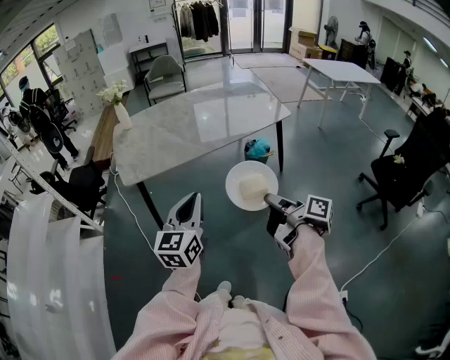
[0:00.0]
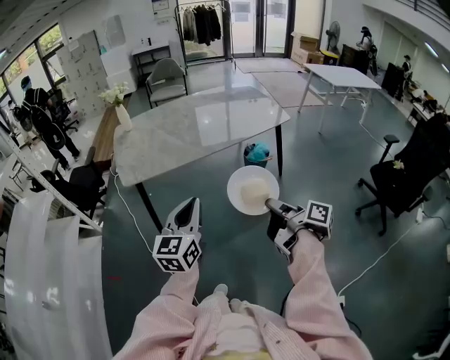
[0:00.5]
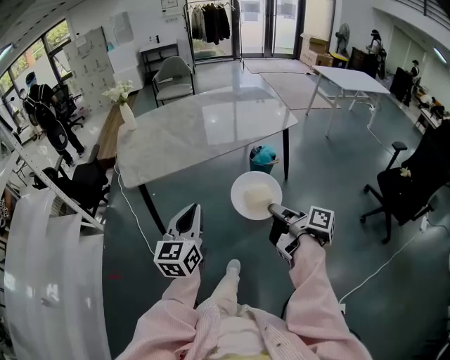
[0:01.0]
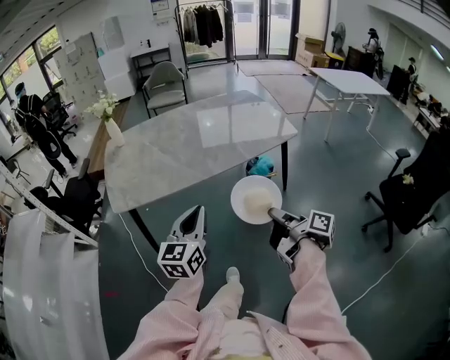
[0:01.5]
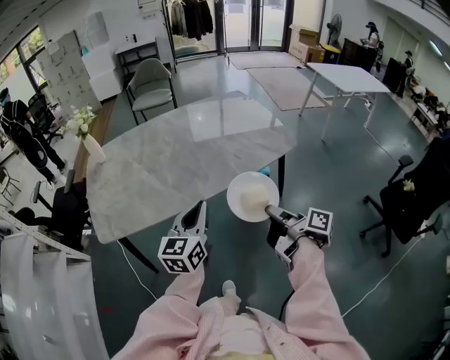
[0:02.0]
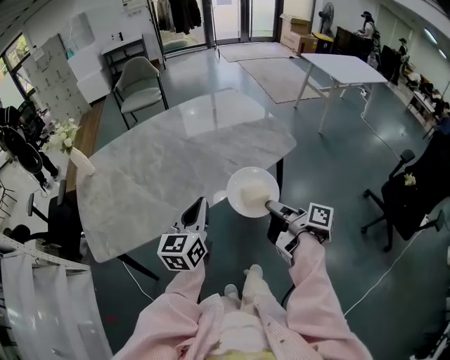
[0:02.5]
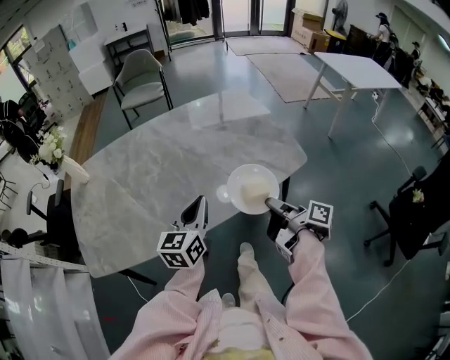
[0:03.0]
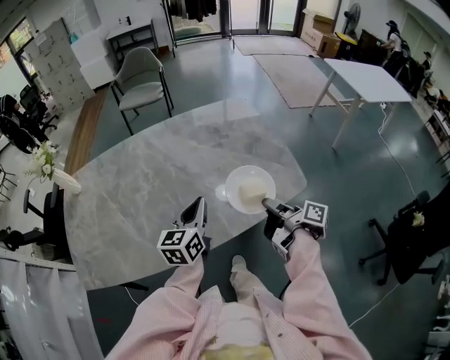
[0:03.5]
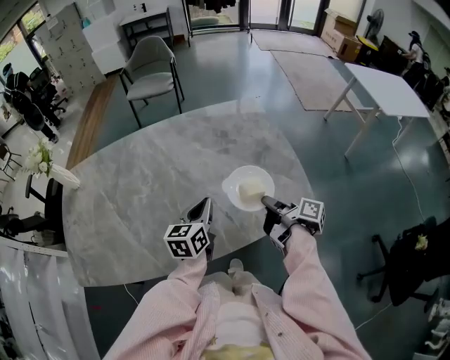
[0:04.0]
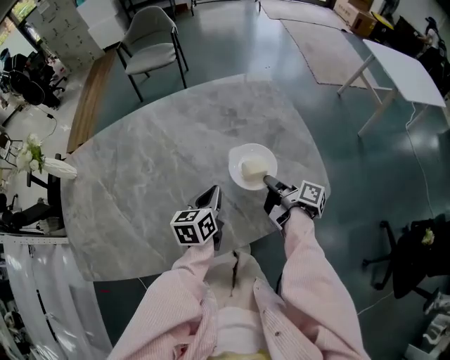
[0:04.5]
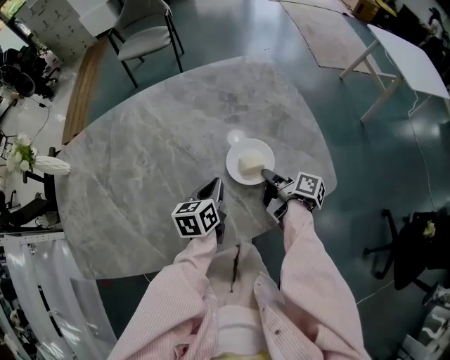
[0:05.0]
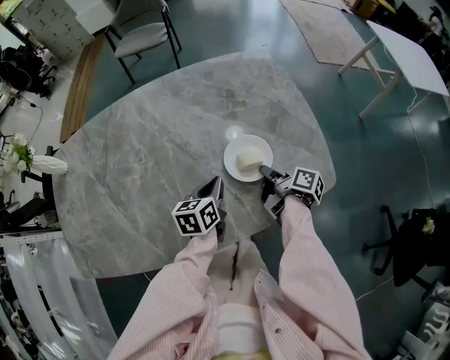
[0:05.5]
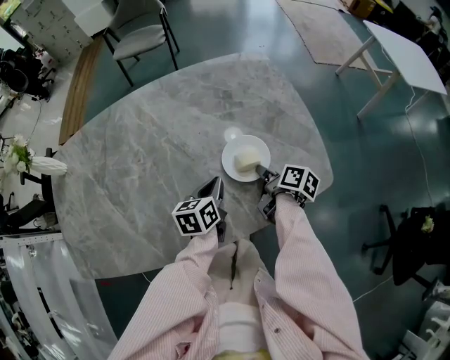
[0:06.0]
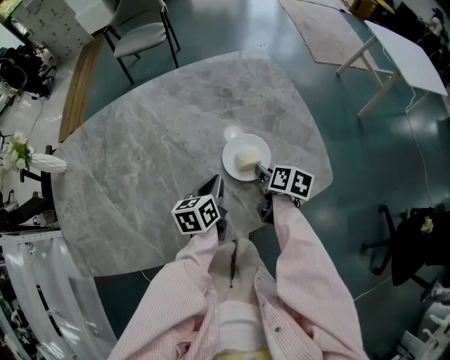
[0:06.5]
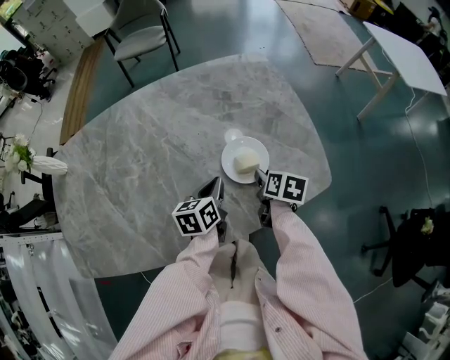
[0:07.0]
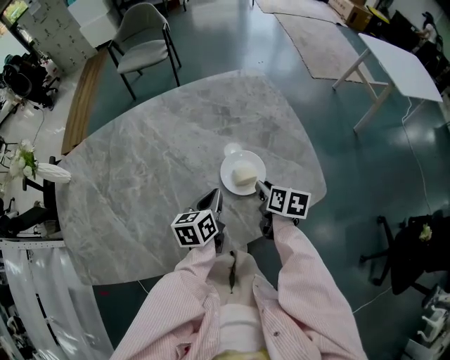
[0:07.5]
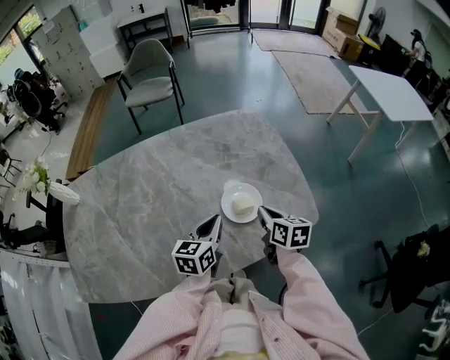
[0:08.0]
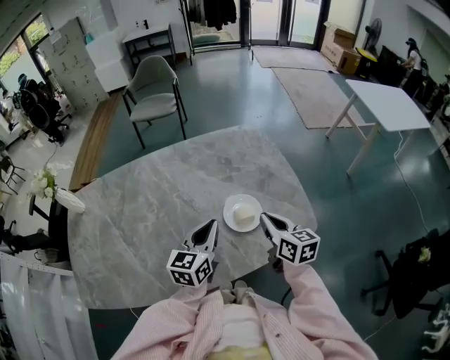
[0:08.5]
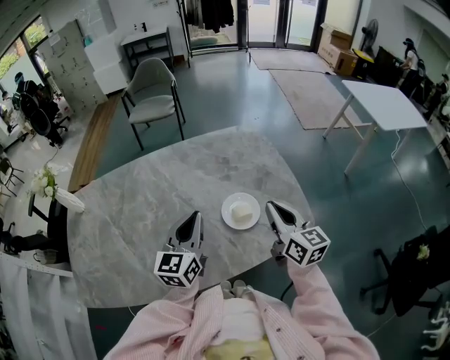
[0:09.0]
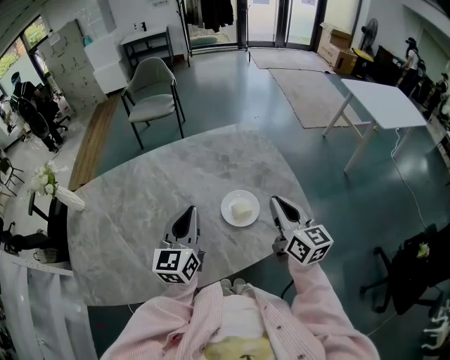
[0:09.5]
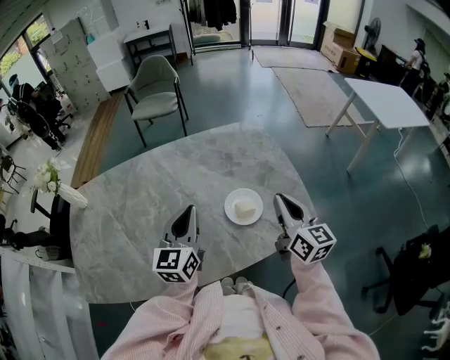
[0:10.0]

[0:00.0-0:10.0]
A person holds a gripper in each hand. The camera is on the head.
0:00.0 to 0:02.0: Both grippers travel together forward, approximately 30 cm.
0:02.0 to 0:04.0: Both grippers are carried forward, about 40 cm.
0:04.0 to 0:06.0: The right gripper shifts roughly 15 cm downward and forward, and swivels approximately 20 degrees, while the left gripper goes about 10 cm downward.
0:06.0 to 0:08.0: The grippers both shift upward by roughly 10 cm. The right gripper swivels some 40 degrees.
0:08.0 to 0:10.0: The right gripper goes roughly 15 cm upward, and turns by about 30 degrees, while the left gripper shifts roughly 15 cm upward and to the left, and turns by about 30 degrees.

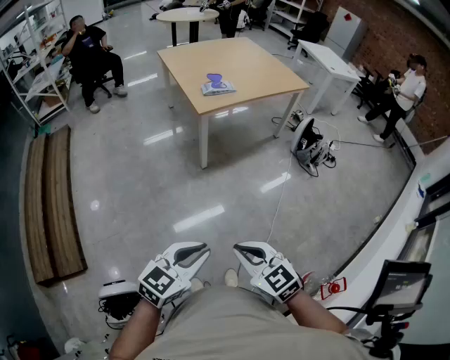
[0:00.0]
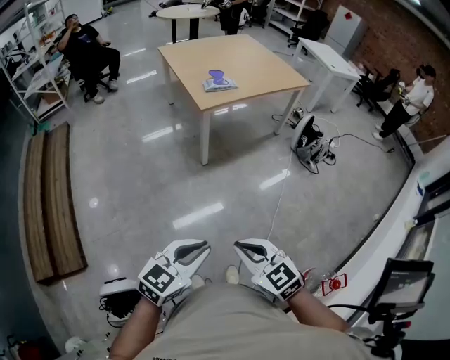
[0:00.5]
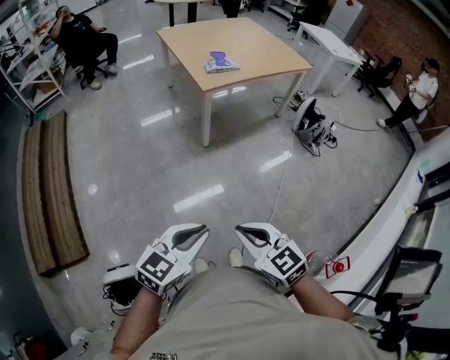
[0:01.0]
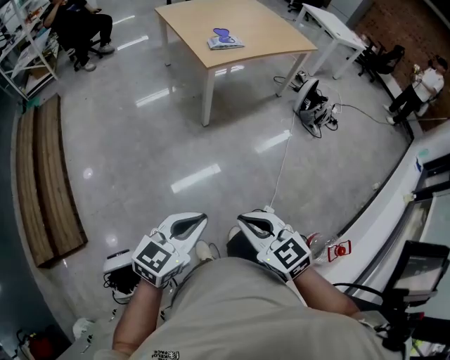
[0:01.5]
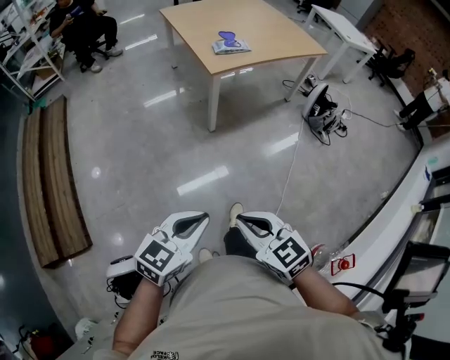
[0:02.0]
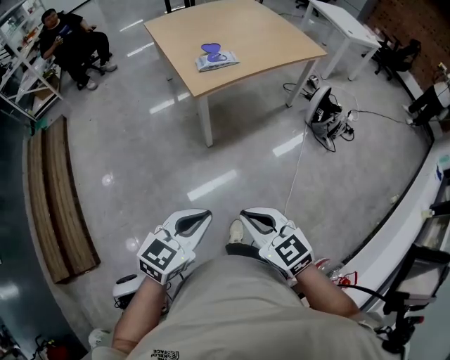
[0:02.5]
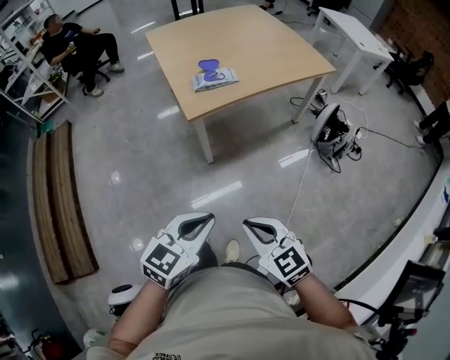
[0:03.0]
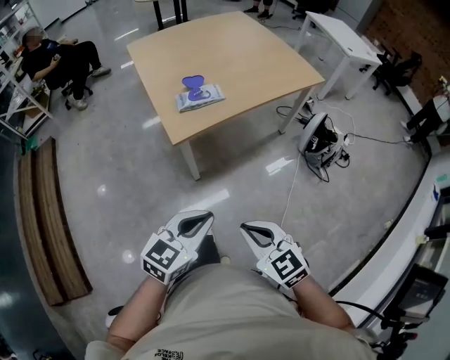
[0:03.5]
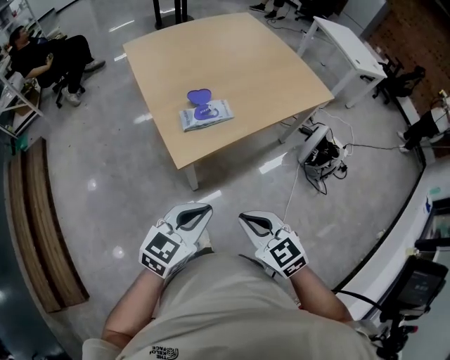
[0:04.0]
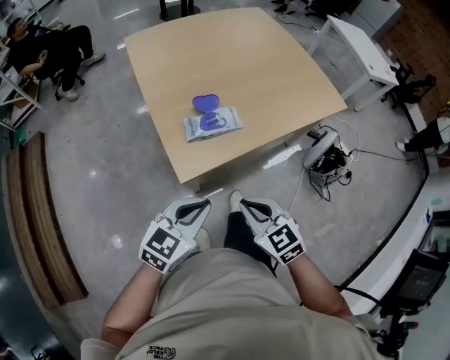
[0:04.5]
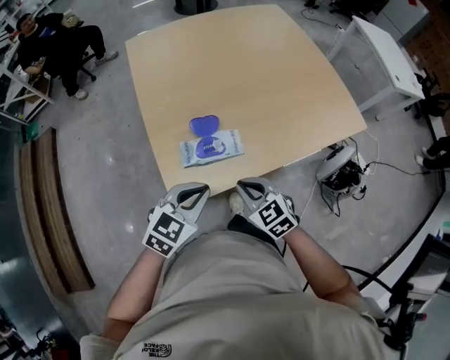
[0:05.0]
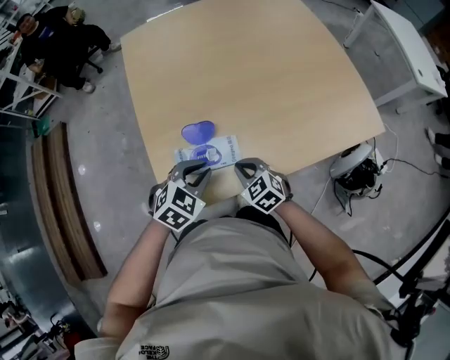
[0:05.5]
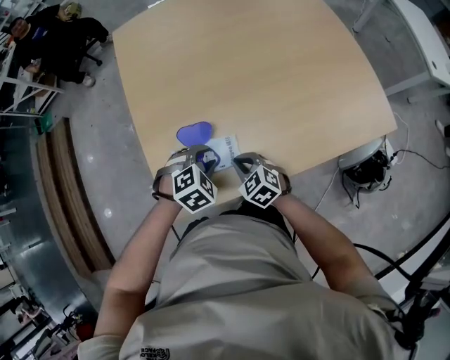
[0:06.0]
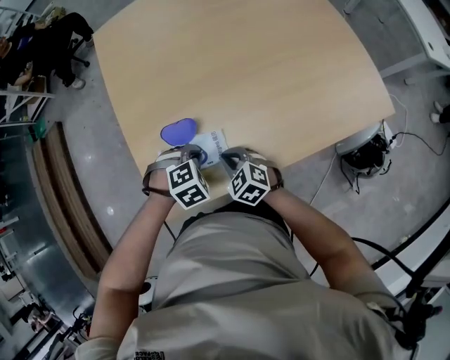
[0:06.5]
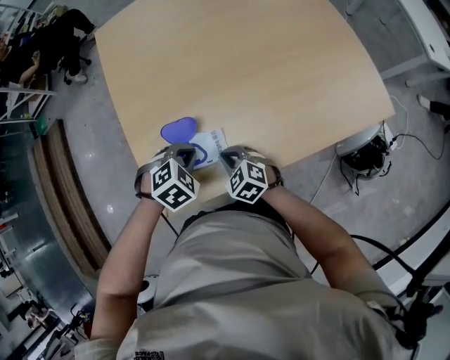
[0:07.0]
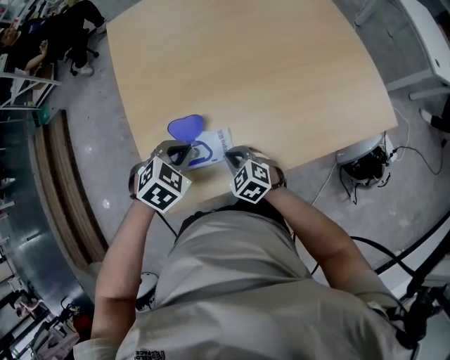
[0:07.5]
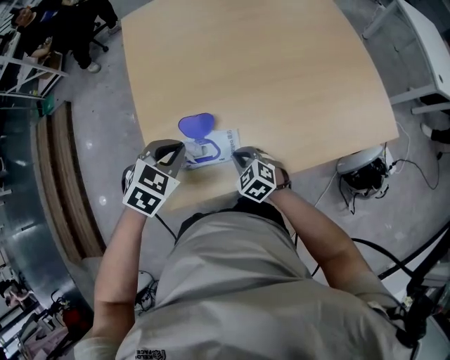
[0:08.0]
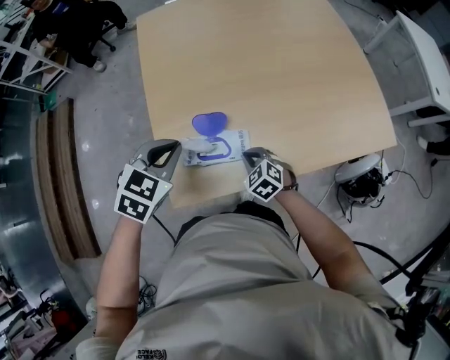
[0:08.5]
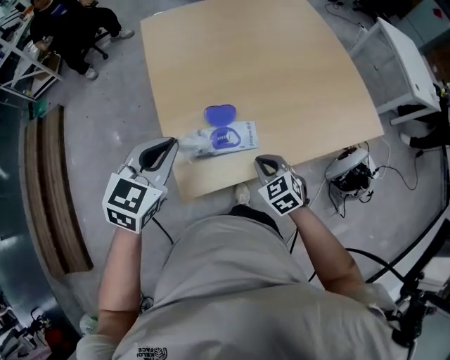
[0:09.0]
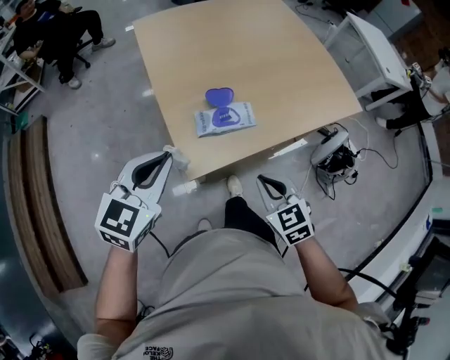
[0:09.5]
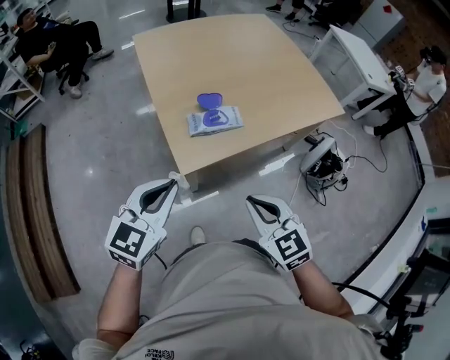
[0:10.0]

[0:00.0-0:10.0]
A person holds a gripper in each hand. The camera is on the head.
0:00.0 to 0:02.0: The two grippers go about 10 cm to the left and forward.
0:02.0 to 0:04.0: The pair of grippers is taken forward, approximately 60 cm.
0:04.0 to 0:06.0: Both grippers are carried forward, some 50 cm. Both grippers travel together downward, some 25 cm. The left gripper tips its fingers downward by roughly 50 degrees, and opens its fingers; the right gripper swivels about 20 degrees.
0:06.0 to 0:08.0: The left gripper heads upward, covering roughly 10 cm, turns by some 20 degrees, and closes up.
0:08.0 to 0:10.0: The right gripper moves backward and upward, some 50 cm, and changes its angle by some 30 degrees; the left gripper goes roughly 40 cm backward, to the left and upward, and points its fingers some 40 degrees further upward.

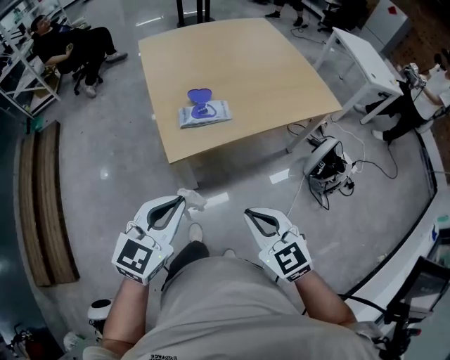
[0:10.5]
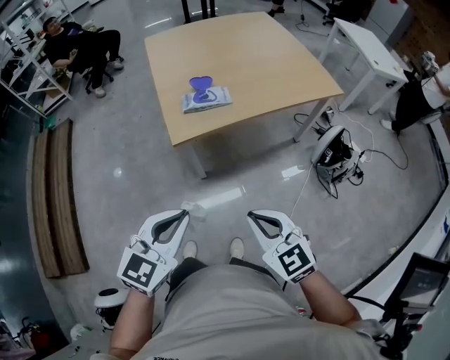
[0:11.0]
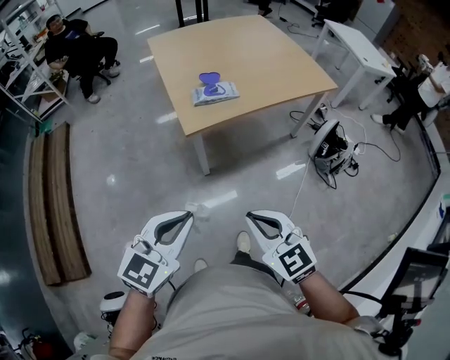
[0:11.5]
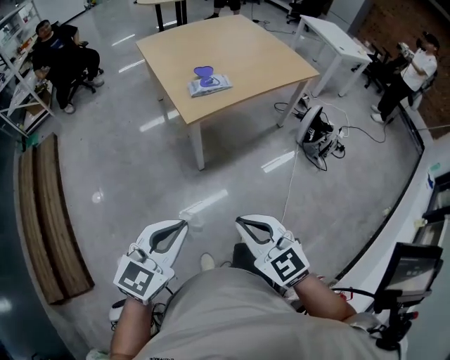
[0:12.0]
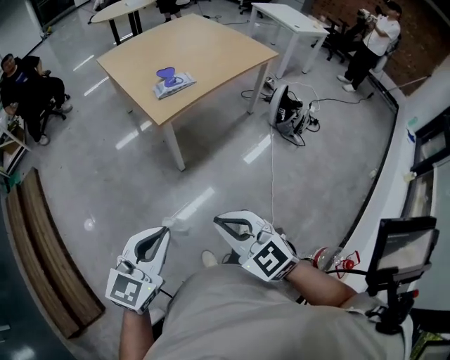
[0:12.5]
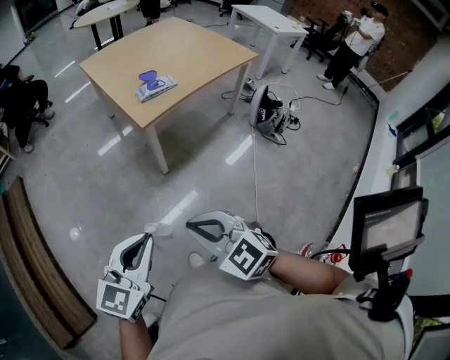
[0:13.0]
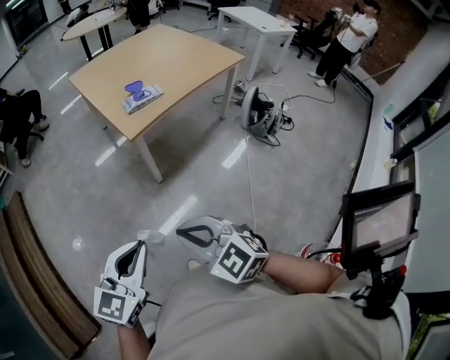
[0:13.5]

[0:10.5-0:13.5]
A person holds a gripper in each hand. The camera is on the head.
0:10.5 to 0:12.0: The grippers both shift backward and to the left by roughly 35 cm.
0:12.0 to 0:13.5: The right gripper moves backward and to the left, some 10 cm, while the left gripper shifts some 5 cm backward.

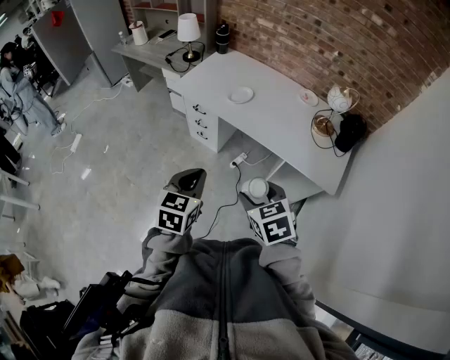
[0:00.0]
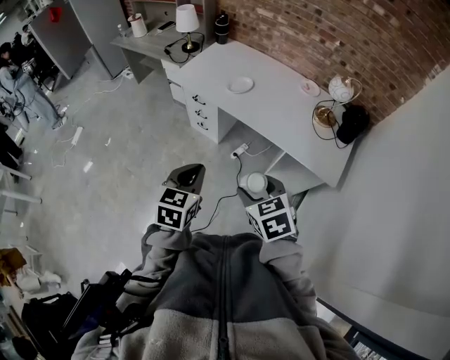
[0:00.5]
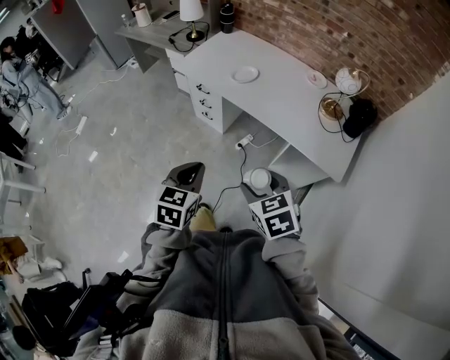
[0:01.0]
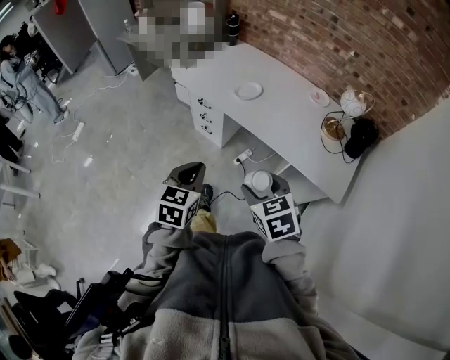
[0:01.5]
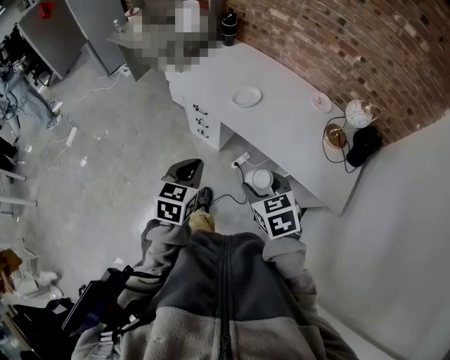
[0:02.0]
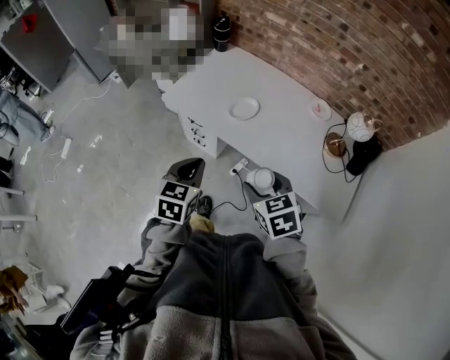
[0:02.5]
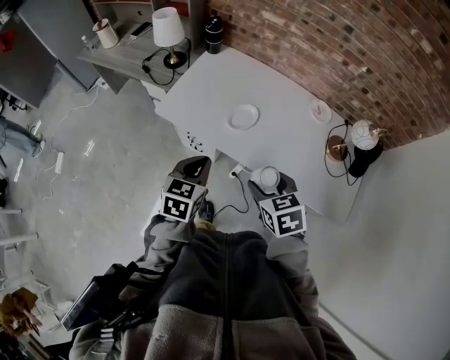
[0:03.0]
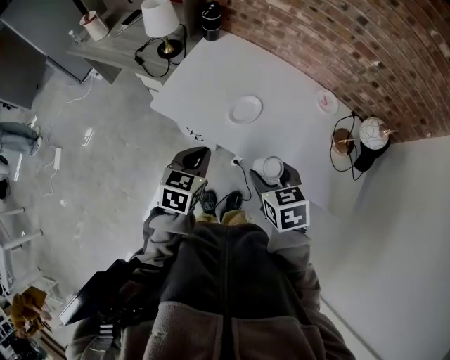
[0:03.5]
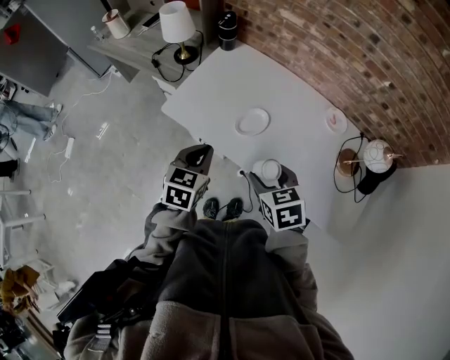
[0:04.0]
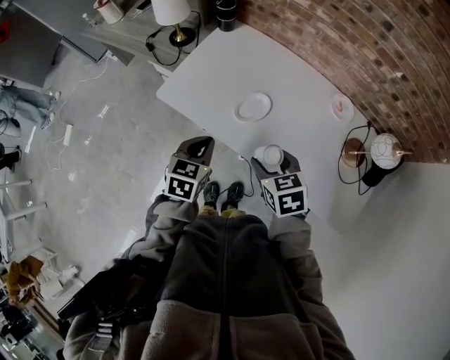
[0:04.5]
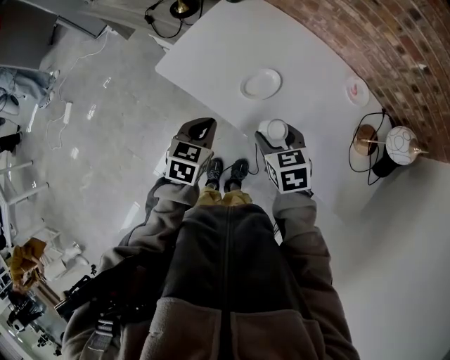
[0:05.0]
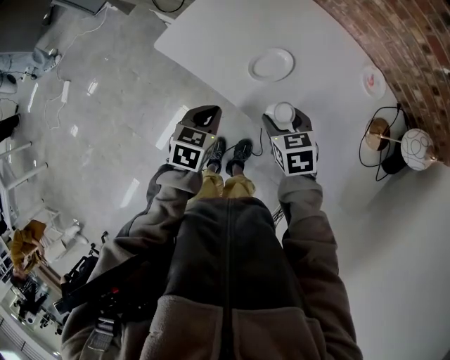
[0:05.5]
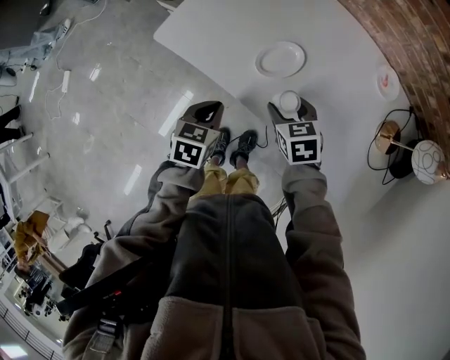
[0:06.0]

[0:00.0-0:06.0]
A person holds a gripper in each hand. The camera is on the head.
0:00.0 to 0:02.0: The two grippers go roughly 15 cm forward.
0:02.0 to 0:04.0: Both grippers travel together forward, some 25 cm.
0:04.0 to 0:06.0: The left gripper shifts approximately 20 cm downward. Meanwhile the right gripper shifts approximately 20 cm downward and forward.
